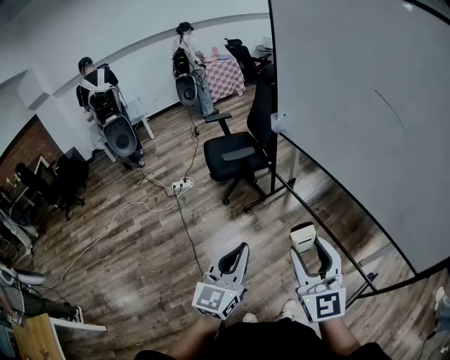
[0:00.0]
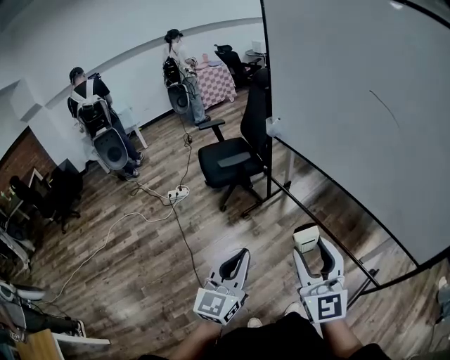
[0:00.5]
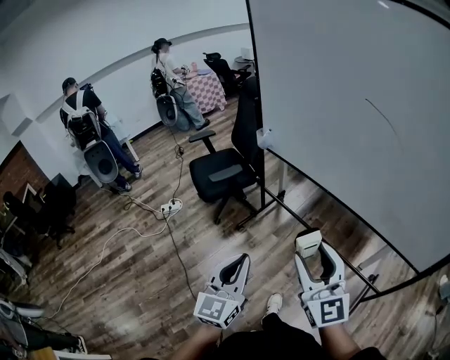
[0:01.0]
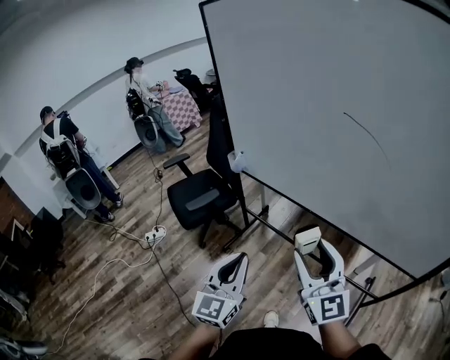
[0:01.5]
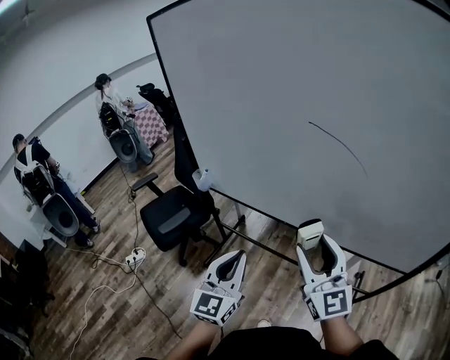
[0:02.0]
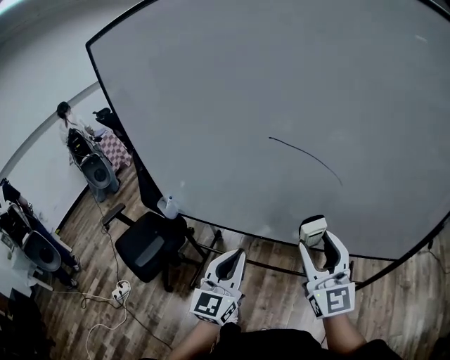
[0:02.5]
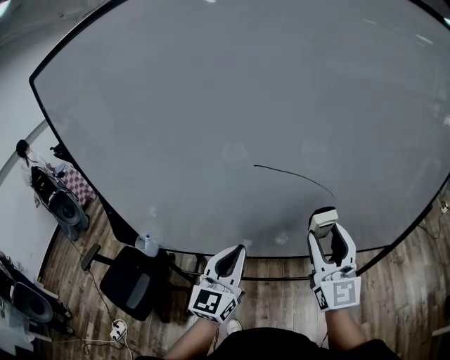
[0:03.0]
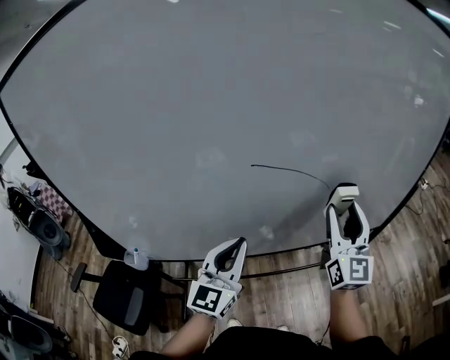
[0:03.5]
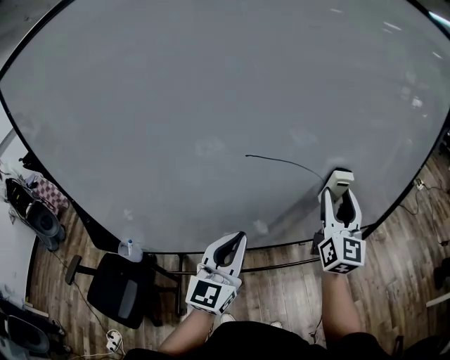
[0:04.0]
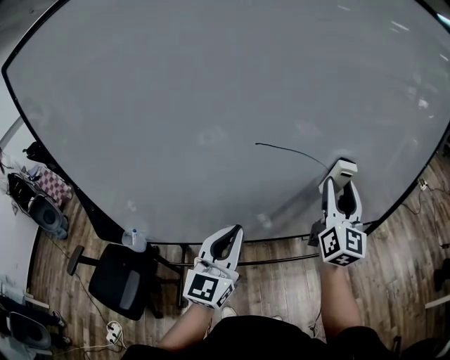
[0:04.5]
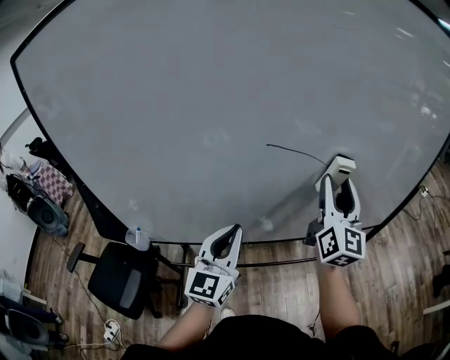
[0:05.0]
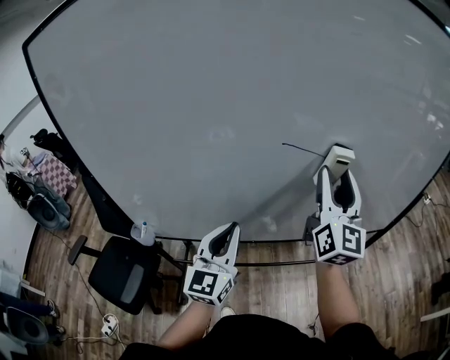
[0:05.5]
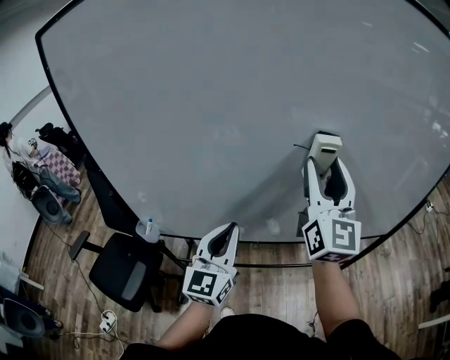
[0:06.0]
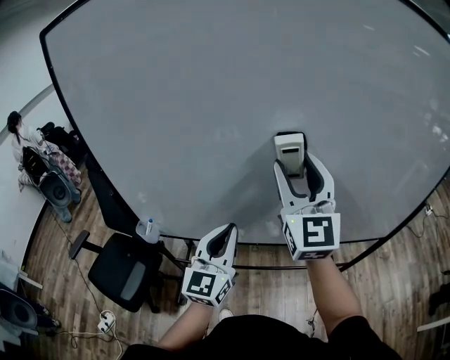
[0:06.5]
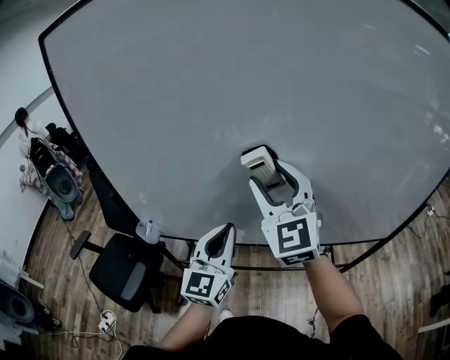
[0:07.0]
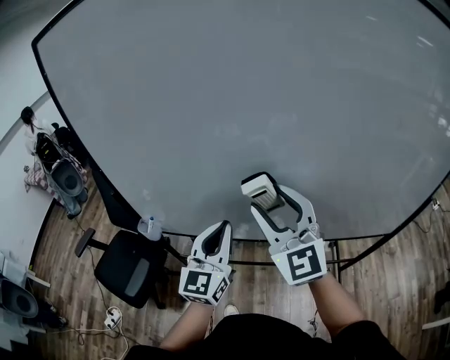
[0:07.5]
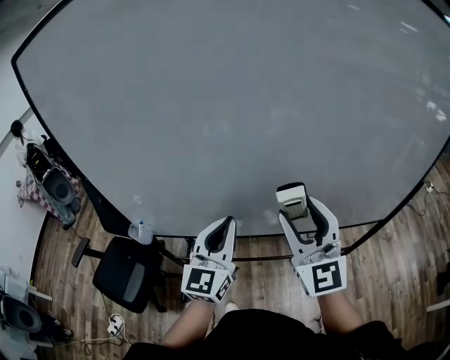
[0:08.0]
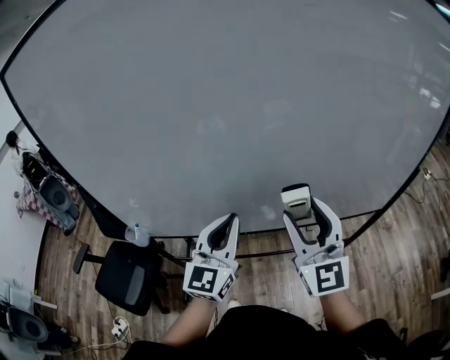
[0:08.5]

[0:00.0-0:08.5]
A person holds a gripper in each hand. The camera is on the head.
0:00.0 to 0:02.0: The right gripper moves about 30 cm, and swivels approximately 30 degrees. The left gripper moves some 30 cm, and rotates some 30 degrees.
0:02.0 to 0:04.0: The left gripper changes place by approximately 25 cm, and rotates about 40 degrees. Meanwhile the right gripper moves about 25 cm, and swivels some 60 degrees.
0:04.0 to 0:06.5: The right gripper is displaced to the left and upward by some 25 cm, and swivels about 30 degrees; the left gripper shifts some 10 cm to the left.
0:06.5 to 0:08.5: The right gripper is displaced downward, to the right and backward by about 15 cm, while the left gripper shifts roughly 5 cm to the right.

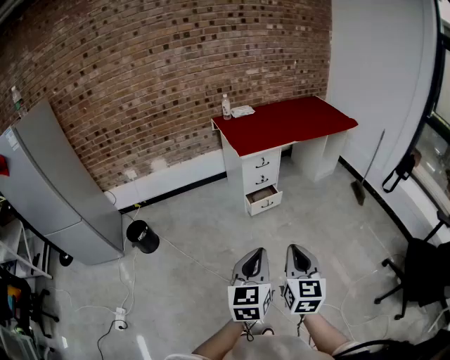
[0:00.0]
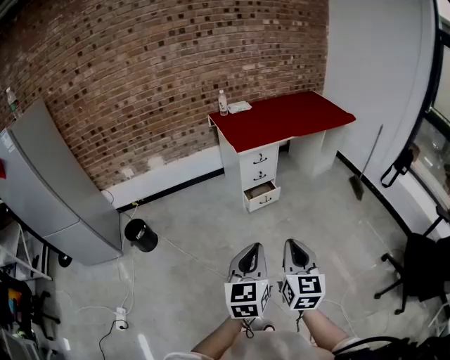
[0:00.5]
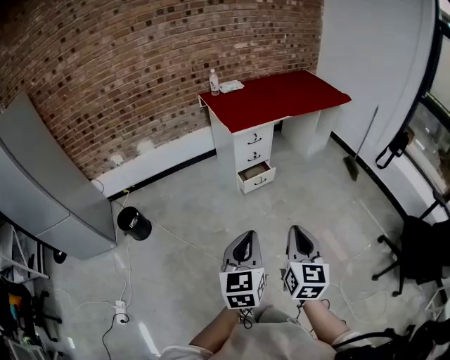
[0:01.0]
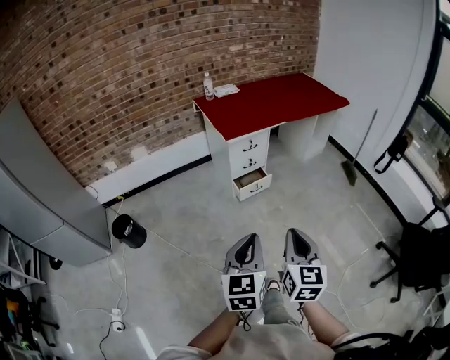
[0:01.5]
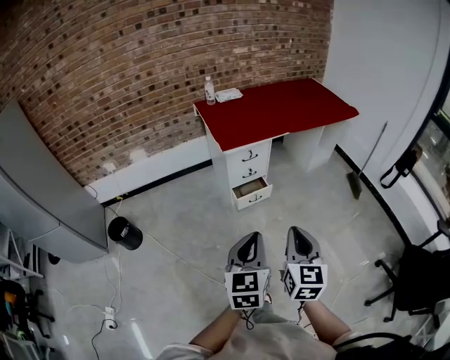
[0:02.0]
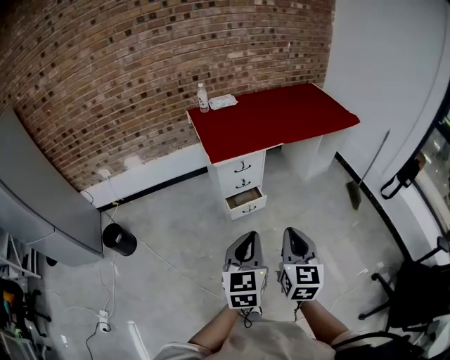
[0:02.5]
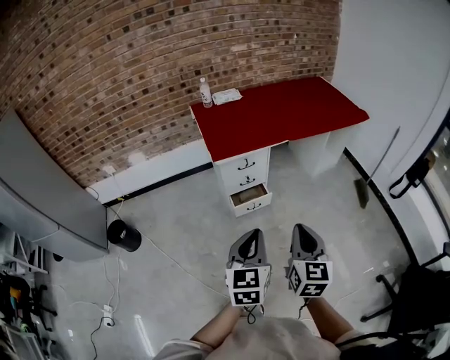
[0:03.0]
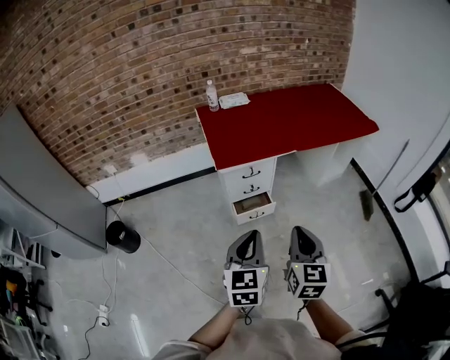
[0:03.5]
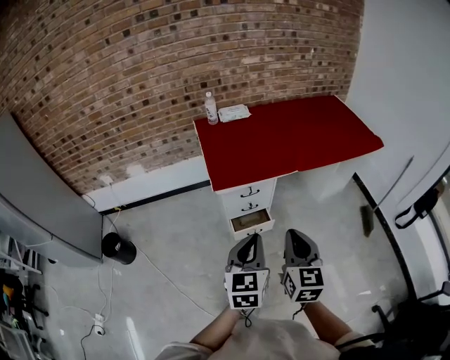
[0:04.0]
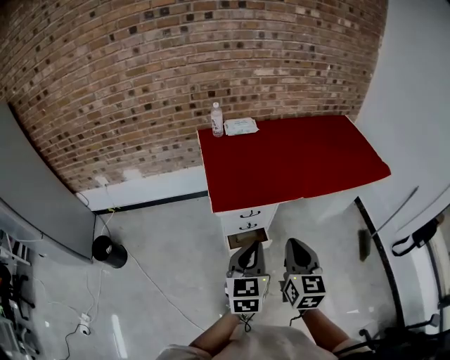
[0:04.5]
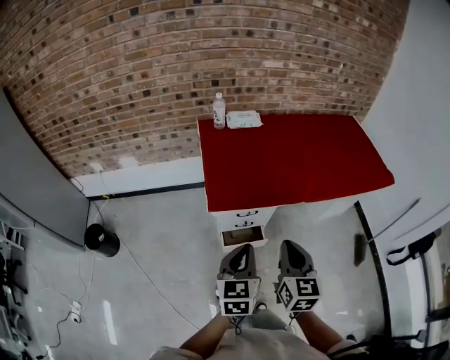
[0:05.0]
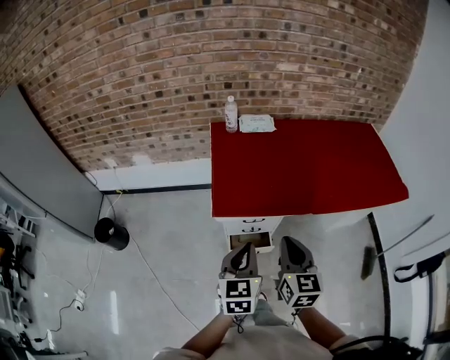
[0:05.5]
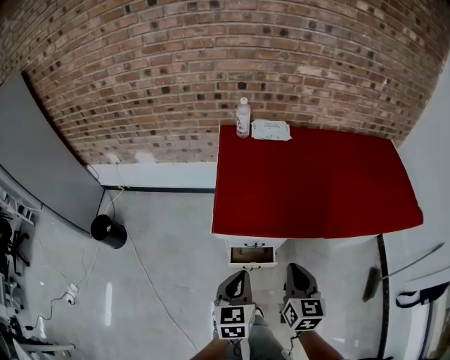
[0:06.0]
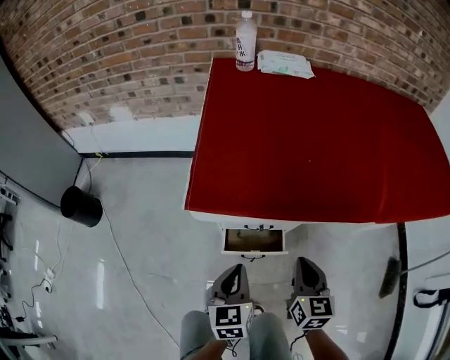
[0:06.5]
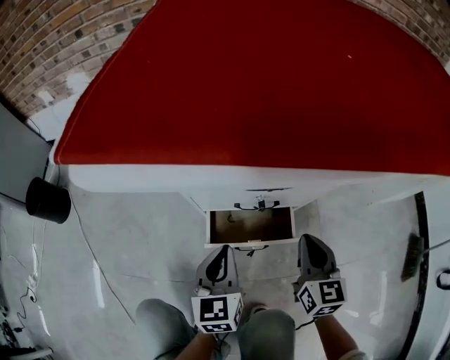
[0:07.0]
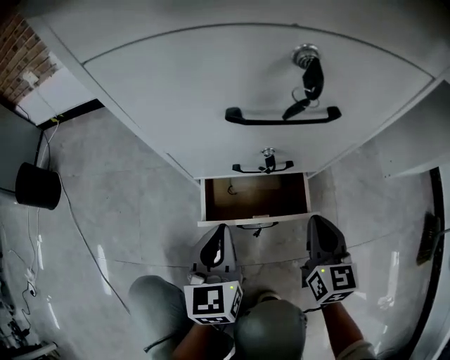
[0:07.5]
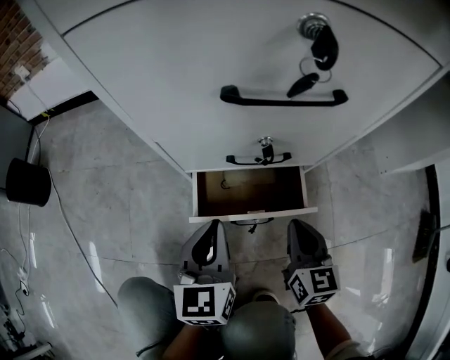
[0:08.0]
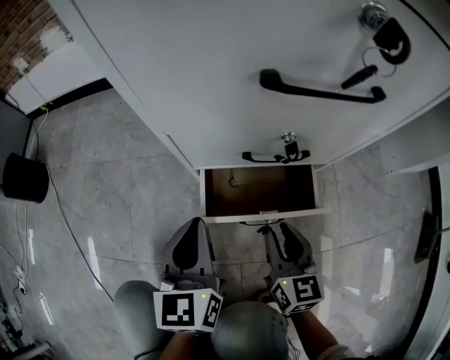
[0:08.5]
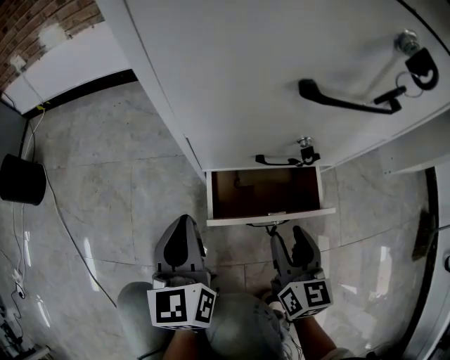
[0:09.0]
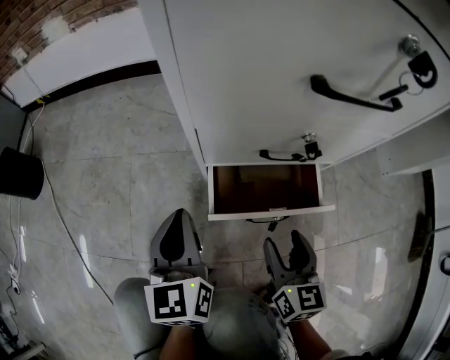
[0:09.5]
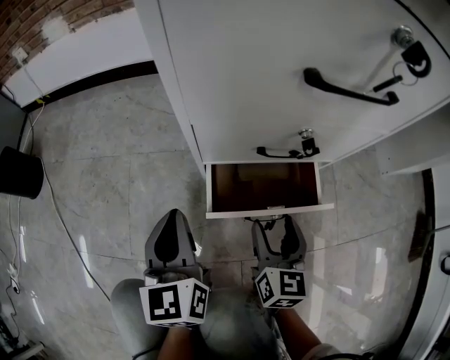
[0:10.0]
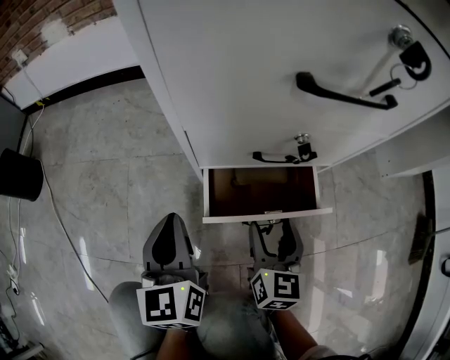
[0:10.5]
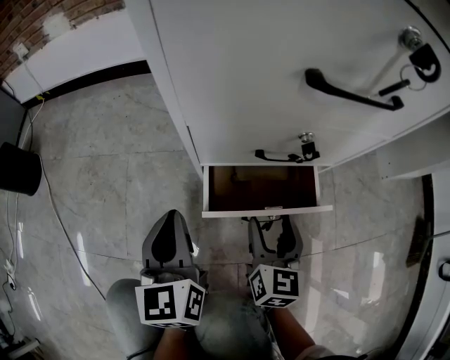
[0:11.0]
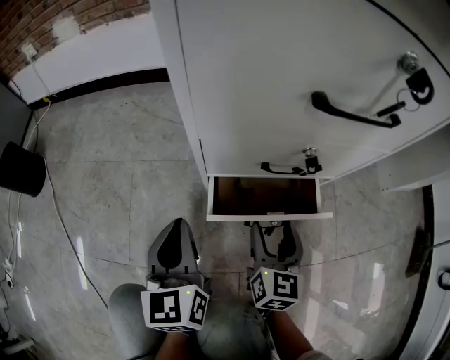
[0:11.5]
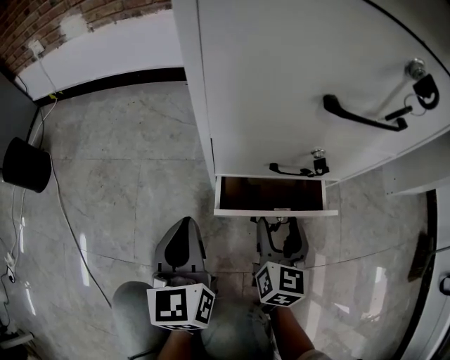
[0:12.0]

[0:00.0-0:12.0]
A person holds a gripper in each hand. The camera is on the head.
0:00.0 to 0:02.0: The two grippers go about 20 cm forward.
0:02.0 to 0:04.0: The grippers both shift forward by roughly 30 cm.
0:04.0 to 0:06.0: Both grippers travel together forward and downward, approximately 25 cm. The left gripper rotates approximately 20 degrees.
0:06.0 to 0:08.0: The grippers both shift downward by some 60 cm.
0:08.0 to 0:10.0: The grippers both shift to the left by roughly 10 cm. The right gripper opens its fingers.
0:10.0 to 0:12.0: The grippers stay close to where they were, moving slightly.

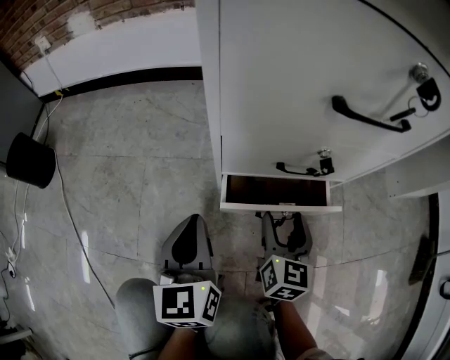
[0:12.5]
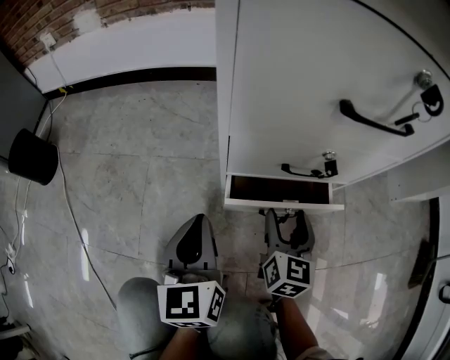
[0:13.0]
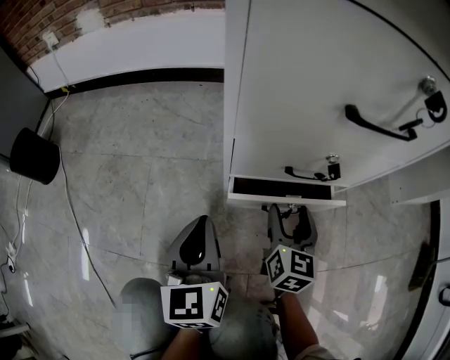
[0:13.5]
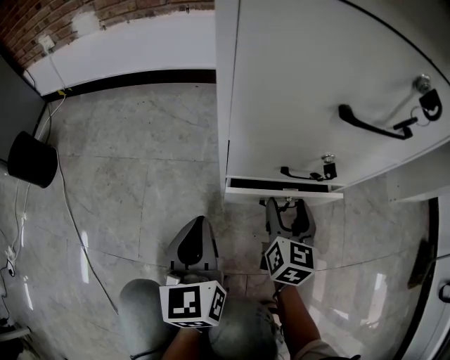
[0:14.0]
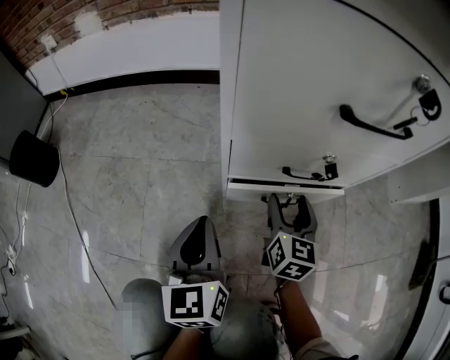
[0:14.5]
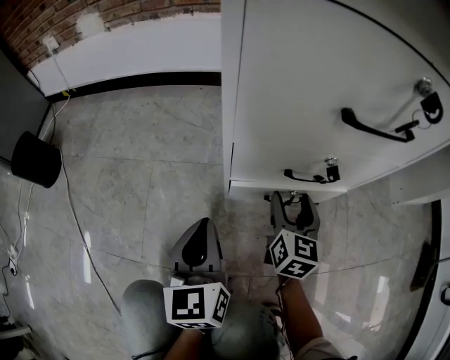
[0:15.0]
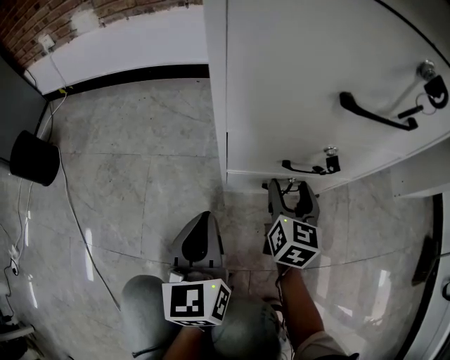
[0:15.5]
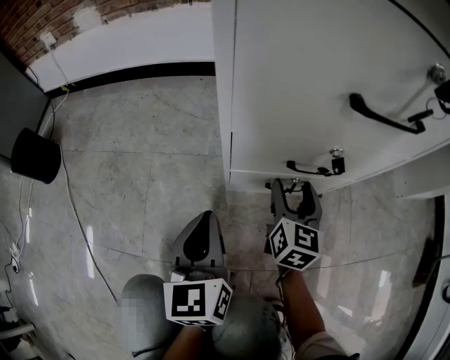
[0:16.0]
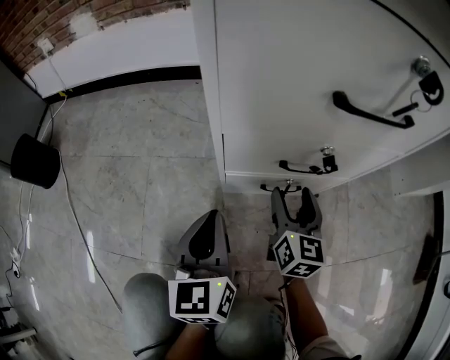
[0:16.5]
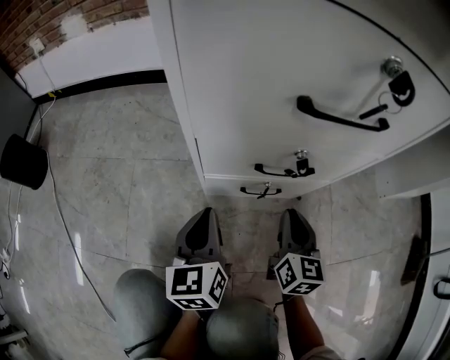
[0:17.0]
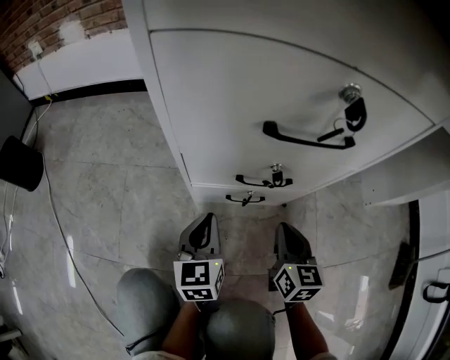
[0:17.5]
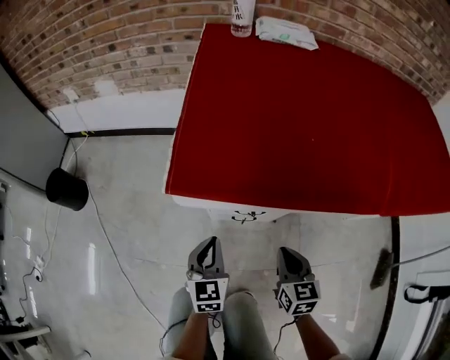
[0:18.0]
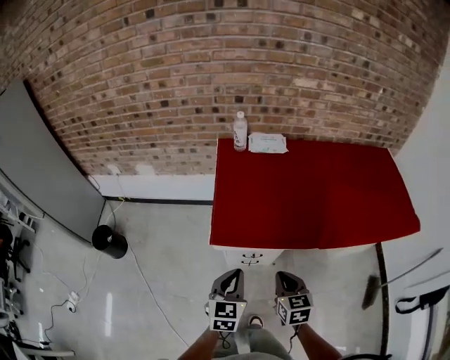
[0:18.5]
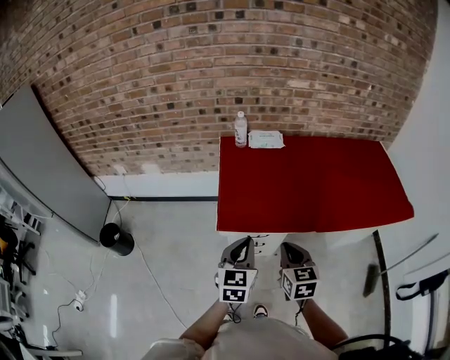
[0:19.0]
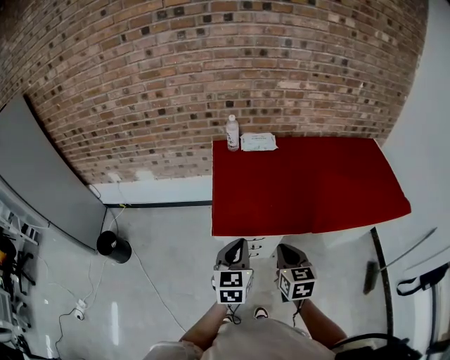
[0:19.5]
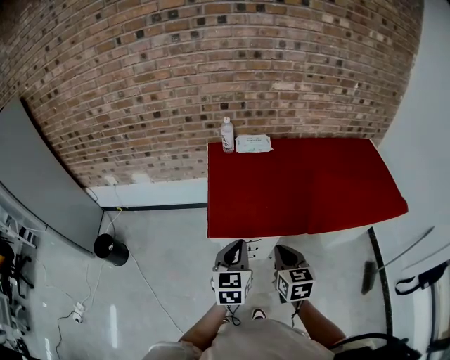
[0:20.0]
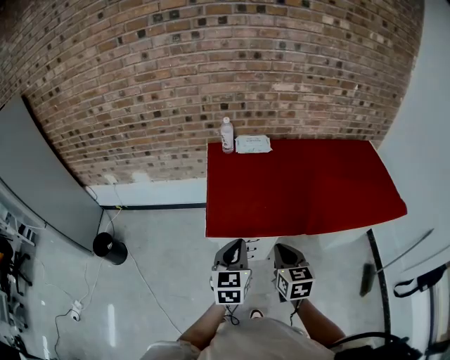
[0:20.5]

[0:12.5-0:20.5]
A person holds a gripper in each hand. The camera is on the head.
0:12.5 to 0:14.5: The right gripper is displaced forward by approximately 5 cm.
0:14.5 to 0:16.5: The grippers stay close to where they were, moving slightly.
0:16.5 to 0:18.5: Both grippers travel together upward, roughly 60 cm. The right gripper rotates roughly 20 degrees, and closes. Meanwhile the left gripper rotates approximately 20 degrees.
0:18.5 to 0:20.5: The grippers both shift upward by some 10 cm.
